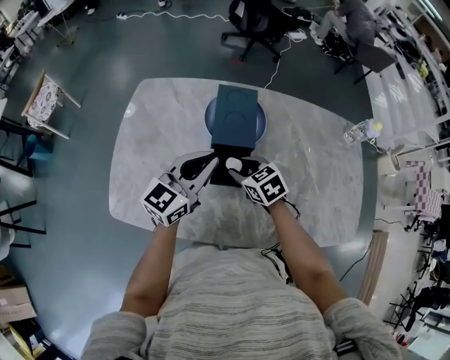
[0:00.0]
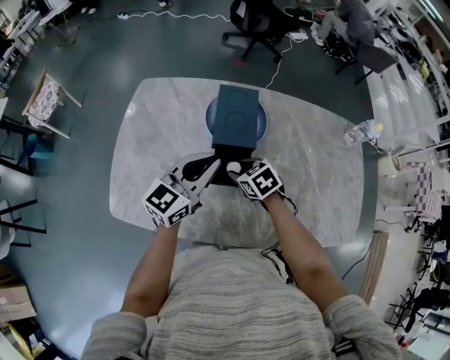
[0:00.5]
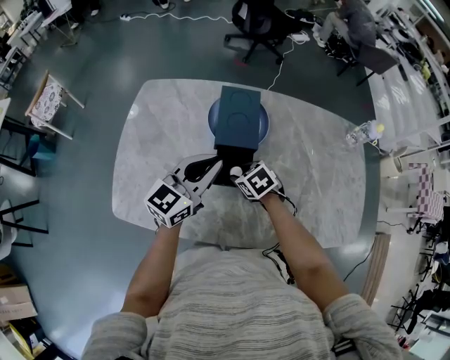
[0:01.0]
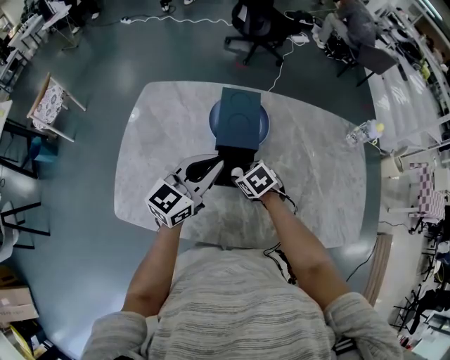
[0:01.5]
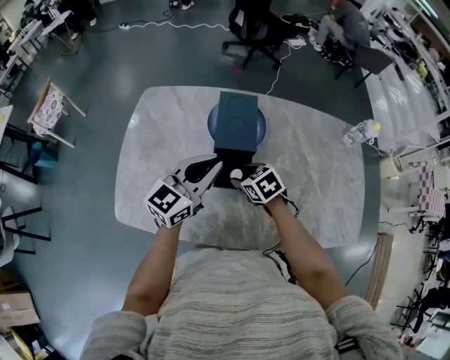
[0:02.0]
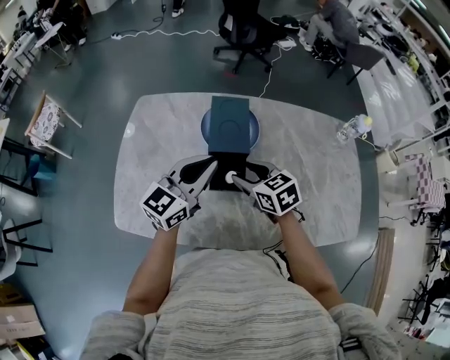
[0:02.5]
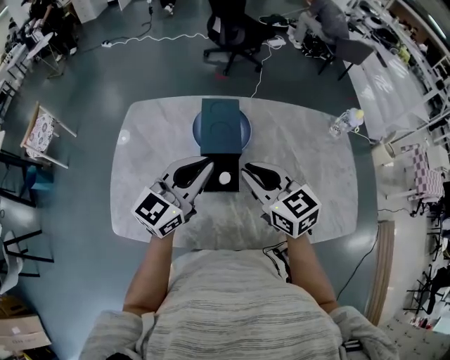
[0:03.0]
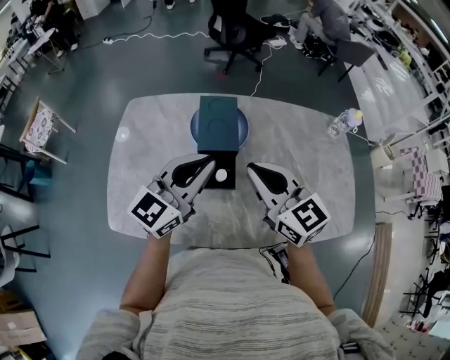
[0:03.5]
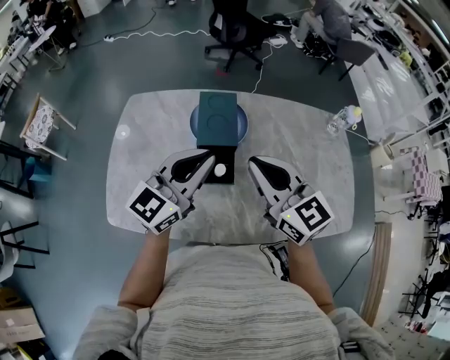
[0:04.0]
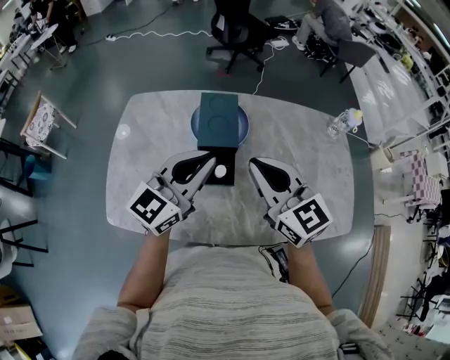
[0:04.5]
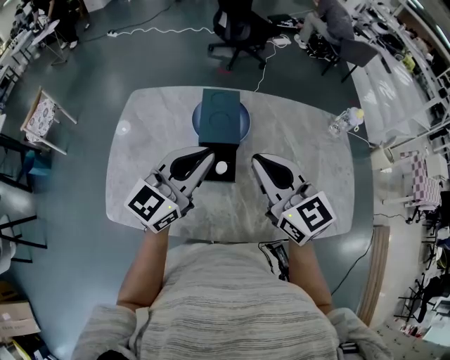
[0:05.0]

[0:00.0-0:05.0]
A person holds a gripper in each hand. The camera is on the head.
0:00.0 to 0:02.5: The right gripper goes some 5 cm upward.
0:02.5 to 0:05.0: The left gripper is displaced upward by roughly 5 cm; the right gripper heads upward, covering about 20 cm, tilts its fingers approximately 30 degrees upward, and closes up.
